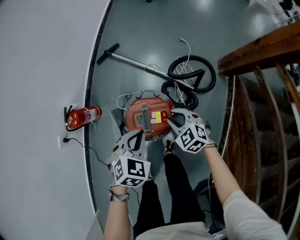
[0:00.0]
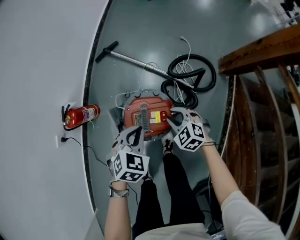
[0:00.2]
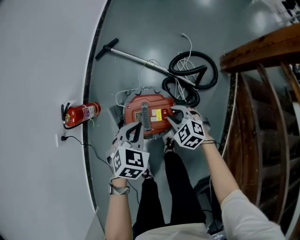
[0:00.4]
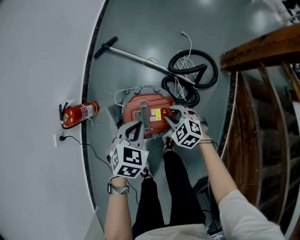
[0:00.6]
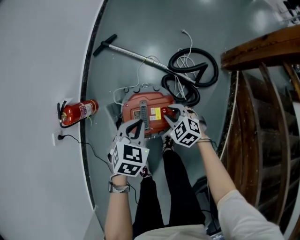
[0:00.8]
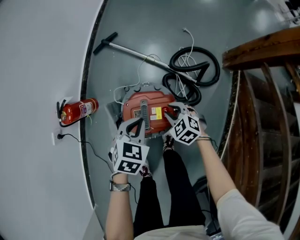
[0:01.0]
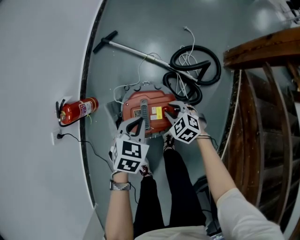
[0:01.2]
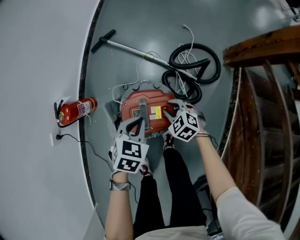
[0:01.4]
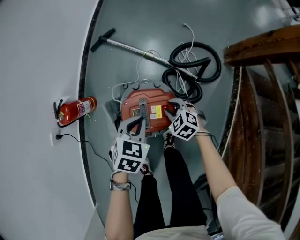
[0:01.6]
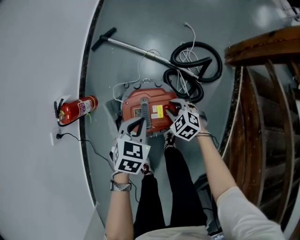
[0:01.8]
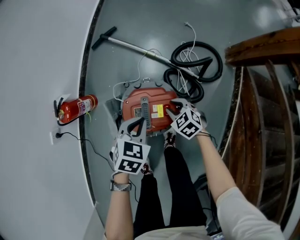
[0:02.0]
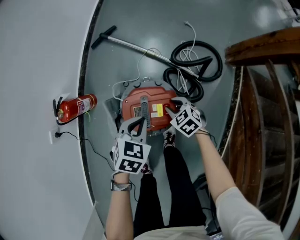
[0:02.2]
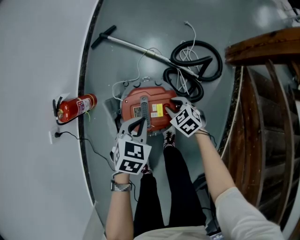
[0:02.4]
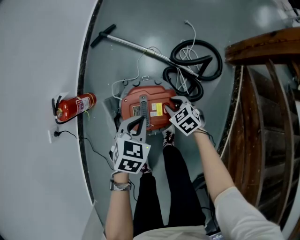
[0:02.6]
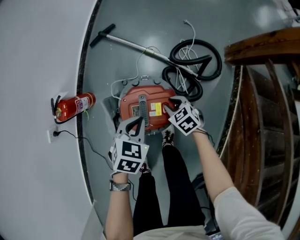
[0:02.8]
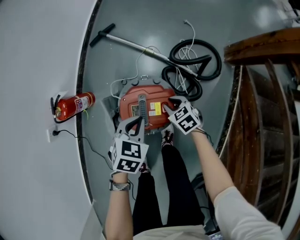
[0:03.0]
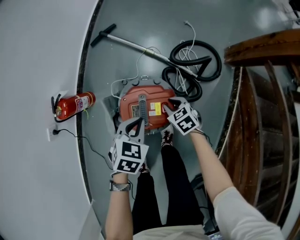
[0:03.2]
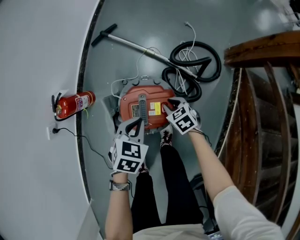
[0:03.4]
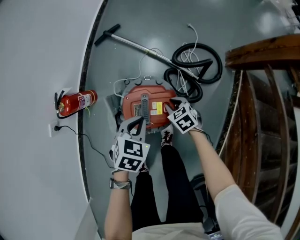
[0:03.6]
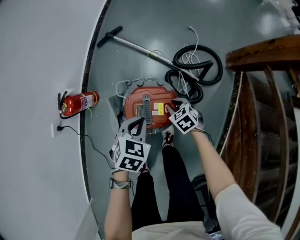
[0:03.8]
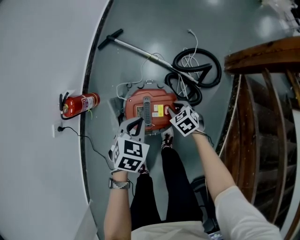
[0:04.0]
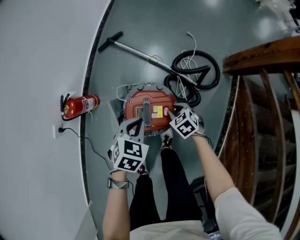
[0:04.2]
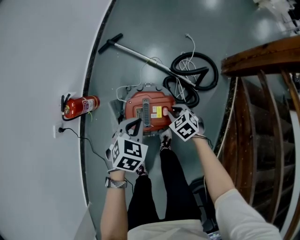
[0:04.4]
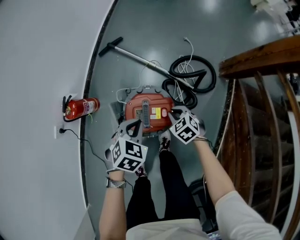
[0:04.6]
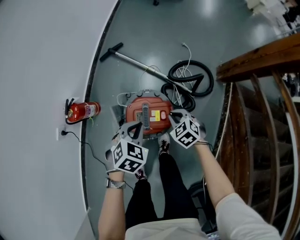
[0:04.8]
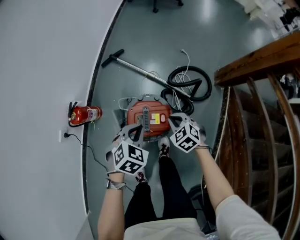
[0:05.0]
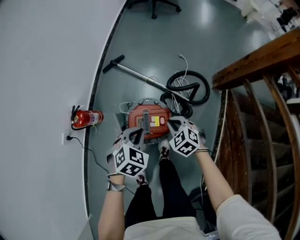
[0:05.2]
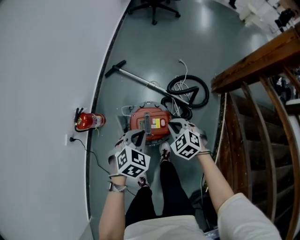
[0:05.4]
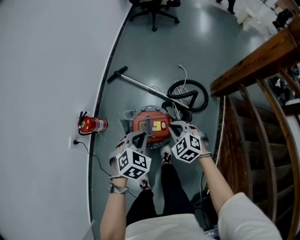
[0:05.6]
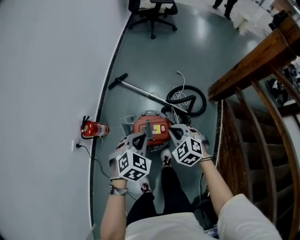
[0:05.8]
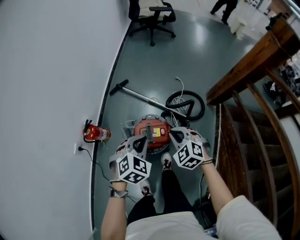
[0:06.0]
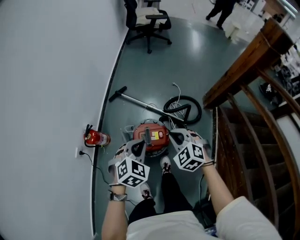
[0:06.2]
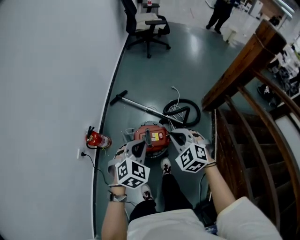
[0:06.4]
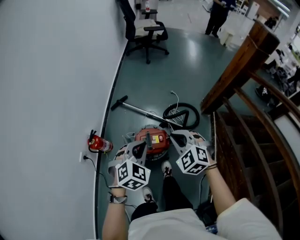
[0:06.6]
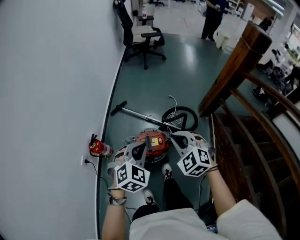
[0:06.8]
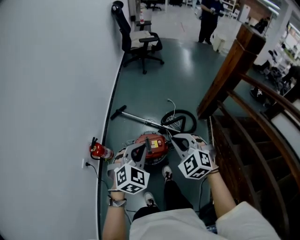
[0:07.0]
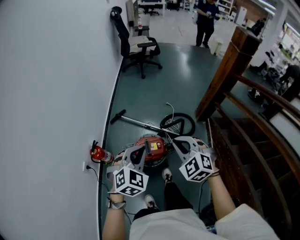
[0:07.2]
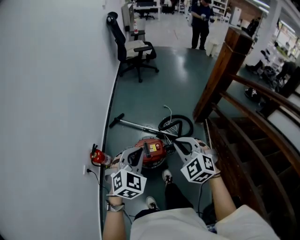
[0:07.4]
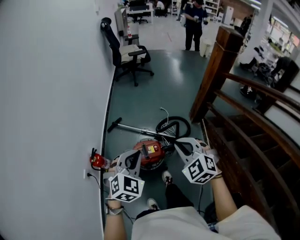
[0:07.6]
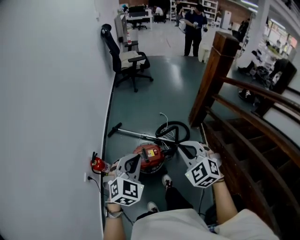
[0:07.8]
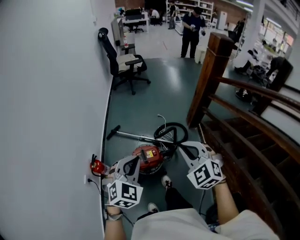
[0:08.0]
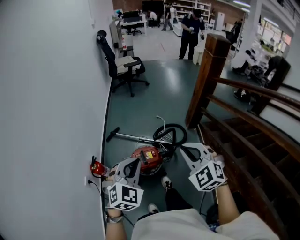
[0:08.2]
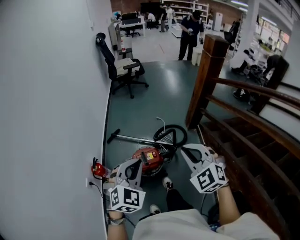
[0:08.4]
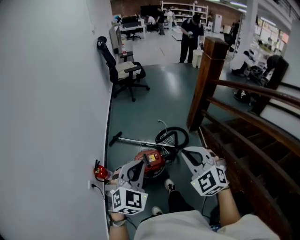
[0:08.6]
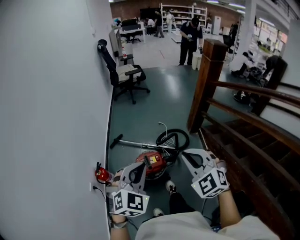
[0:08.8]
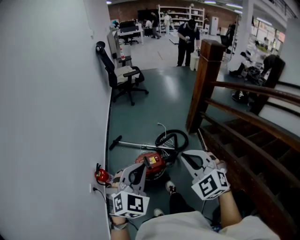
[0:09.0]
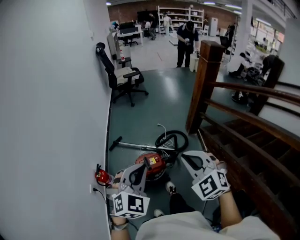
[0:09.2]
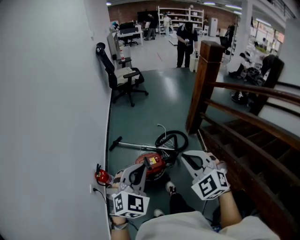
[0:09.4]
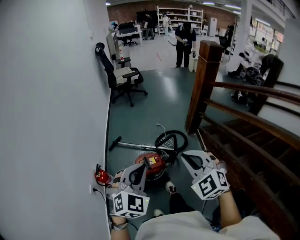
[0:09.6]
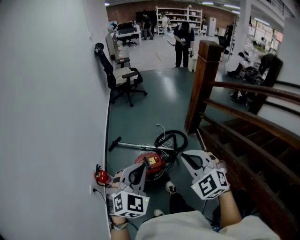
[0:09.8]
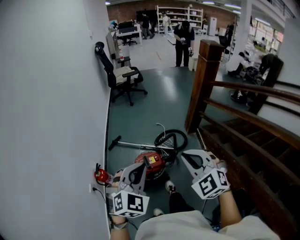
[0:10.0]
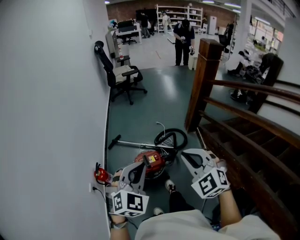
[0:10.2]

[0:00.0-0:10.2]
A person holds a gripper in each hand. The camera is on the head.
0:00.0 to 0:01.4: Both grippers move downward, roughly 10 cm.
0:01.4 to 0:03.0: The right gripper swivels some 20 degrees.
0:03.0 to 0:04.4: The left gripper changes place by some 5 cm. Meanwhile the right gripper is displaced upward by roughly 5 cm.
0:04.4 to 0:05.8: The left gripper travels upward by about 15 cm, while the right gripper goes some 25 cm upward, and rotates about 30 degrees.
0:05.8 to 0:07.2: Both grippers move upward and backward, roughly 25 cm. The left gripper rotates roughly 20 degrees.
0:07.2 to 0:08.8: The right gripper moves backward and upward, some 20 cm. Meanwhile the left gripper is displaced upward and backward by approximately 15 cm.
0:08.8 to 0:10.2: The grippers stay close to where they were, moving slightly.

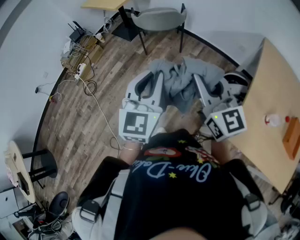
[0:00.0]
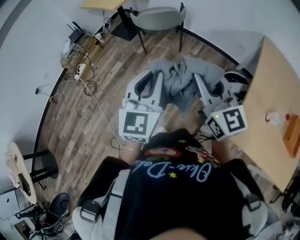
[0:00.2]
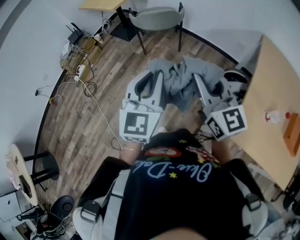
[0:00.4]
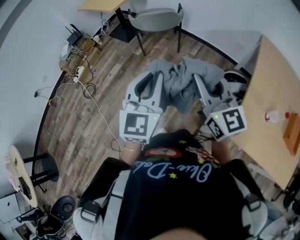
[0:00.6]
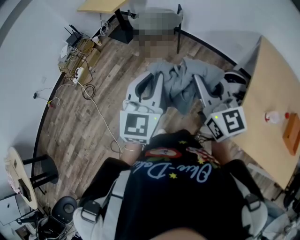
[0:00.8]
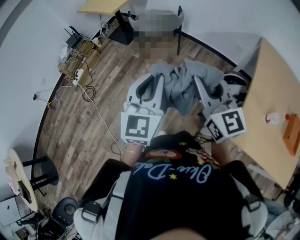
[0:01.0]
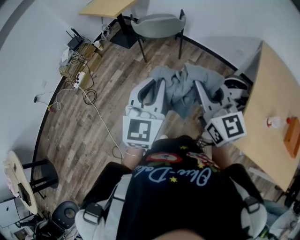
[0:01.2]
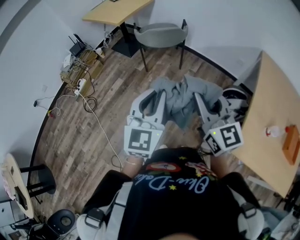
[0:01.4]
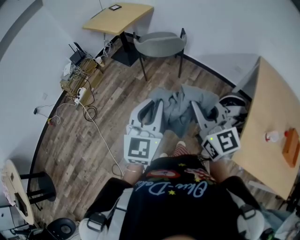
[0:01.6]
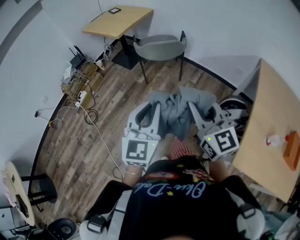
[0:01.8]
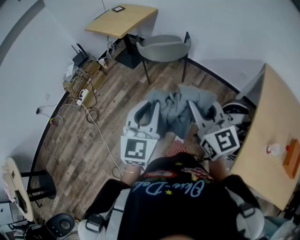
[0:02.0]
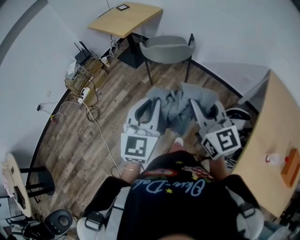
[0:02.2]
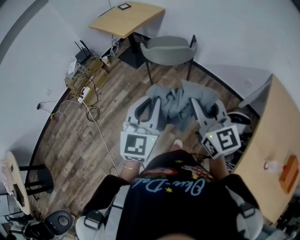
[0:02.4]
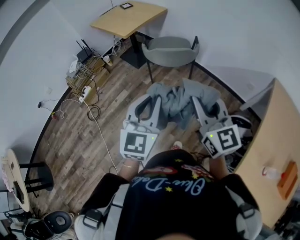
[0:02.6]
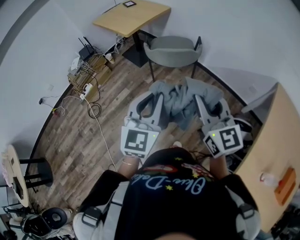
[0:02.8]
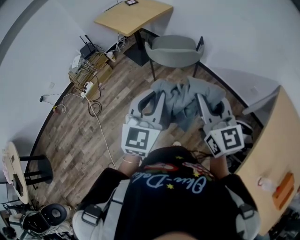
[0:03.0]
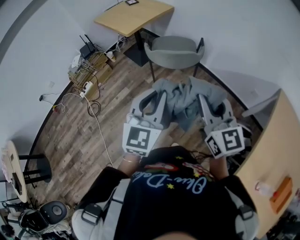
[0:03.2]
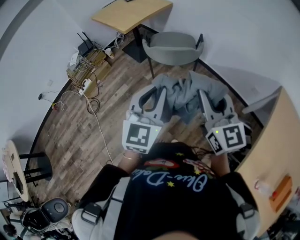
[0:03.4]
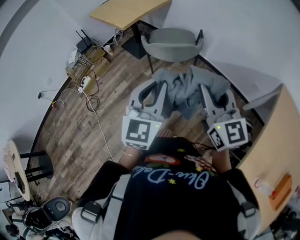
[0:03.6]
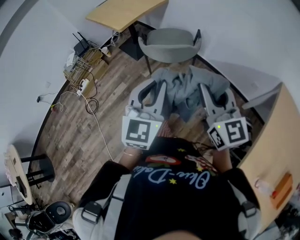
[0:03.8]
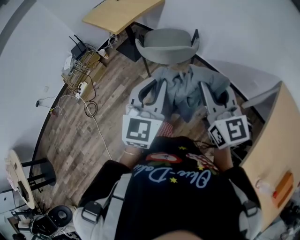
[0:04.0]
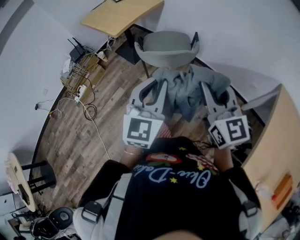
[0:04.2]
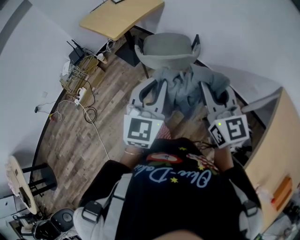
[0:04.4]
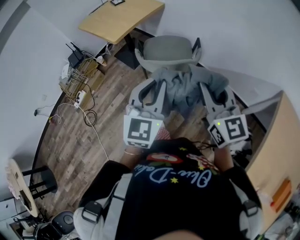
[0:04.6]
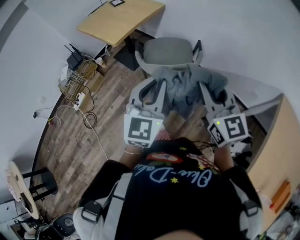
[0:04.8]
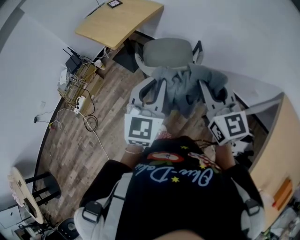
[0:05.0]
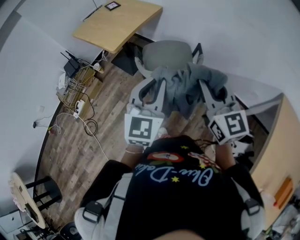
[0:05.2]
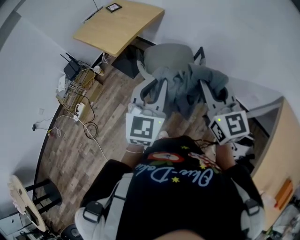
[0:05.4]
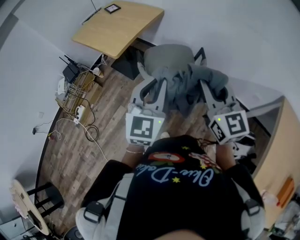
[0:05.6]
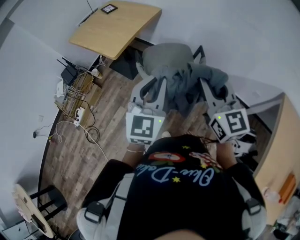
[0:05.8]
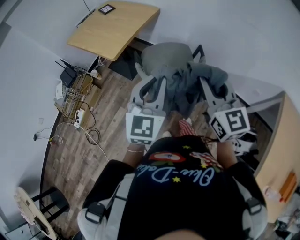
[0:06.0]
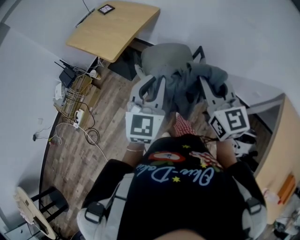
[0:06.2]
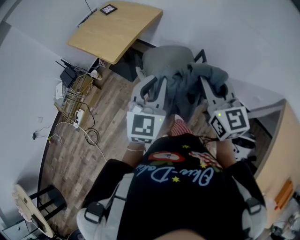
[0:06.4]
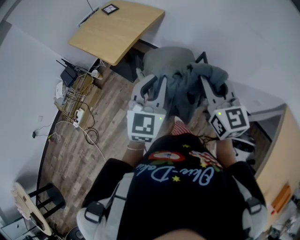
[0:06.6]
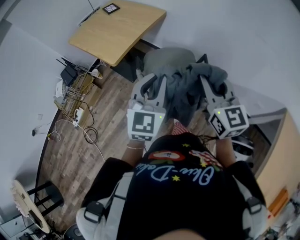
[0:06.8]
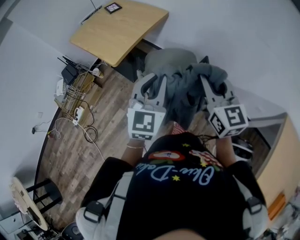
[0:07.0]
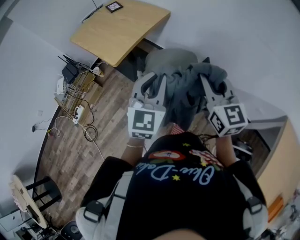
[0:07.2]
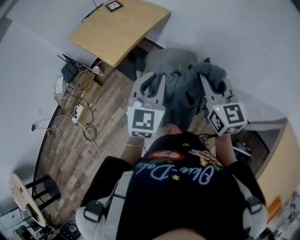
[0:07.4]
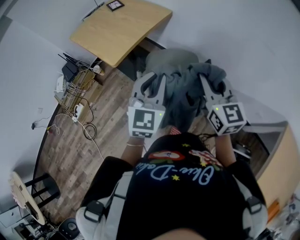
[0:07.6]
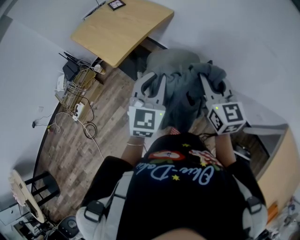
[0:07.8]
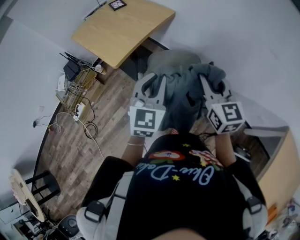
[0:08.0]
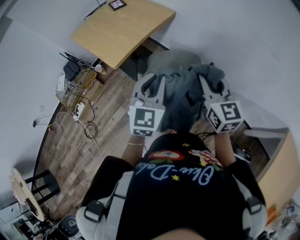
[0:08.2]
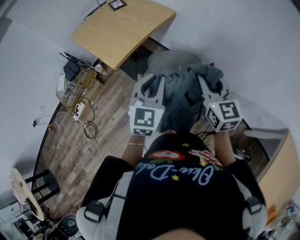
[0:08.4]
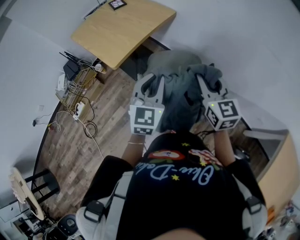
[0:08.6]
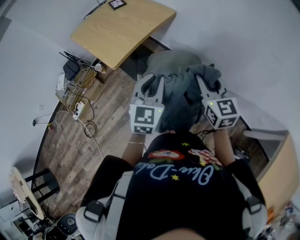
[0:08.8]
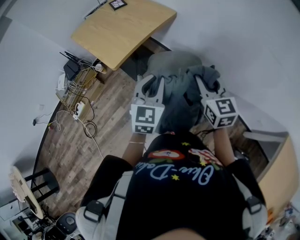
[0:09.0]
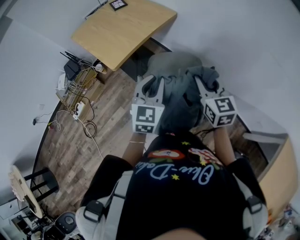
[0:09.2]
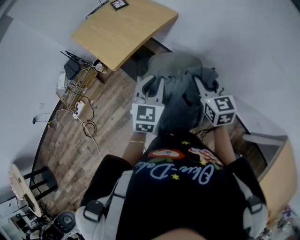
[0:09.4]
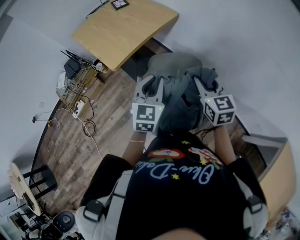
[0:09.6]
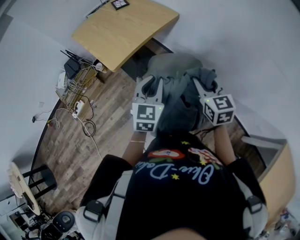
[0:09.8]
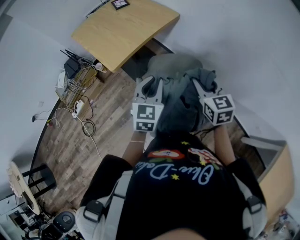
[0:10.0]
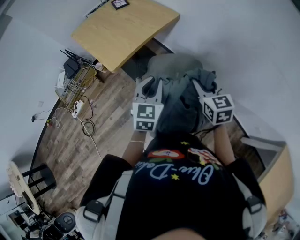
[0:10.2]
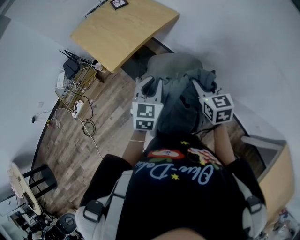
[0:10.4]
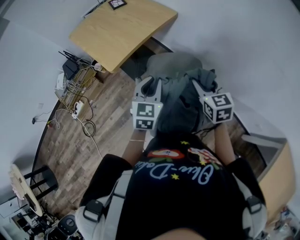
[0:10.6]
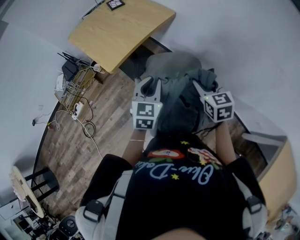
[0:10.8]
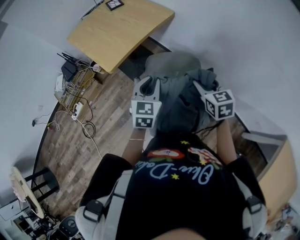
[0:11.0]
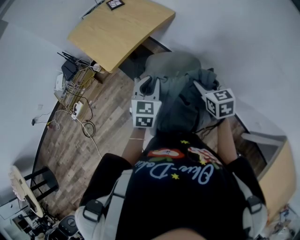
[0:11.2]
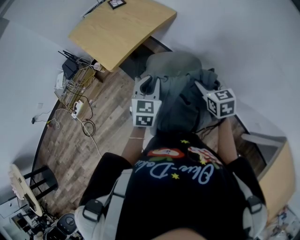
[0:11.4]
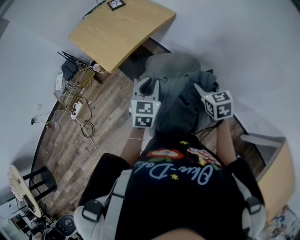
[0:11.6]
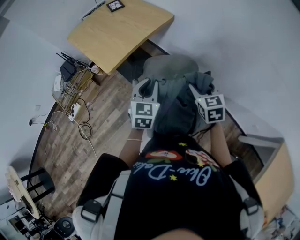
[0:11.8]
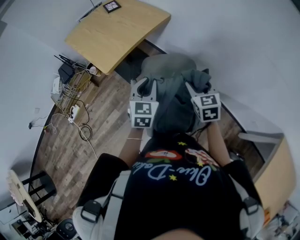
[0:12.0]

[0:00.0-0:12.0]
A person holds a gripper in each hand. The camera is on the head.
0:00.0 to 0:01.6: Both grippers travel together to the left, some 5 cm.
0:01.6 to 0:03.0: The grippers both shift forward by roughly 20 cm.
0:03.0 to 0:04.4: Both grippers travel together forward, roughly 15 cm.
0:04.4 to 0:06.0: Both grippers move forward and to the left, roughly 20 cm.
0:06.0 to 0:07.6: The grippers both shift forward by some 15 cm.
0:07.6 to 0:09.0: Both grippers travel together downward and forward, approximately 10 cm.
0:09.0 to 0:10.4: The right gripper moves some 5 cm, while the left gripper changes place by approximately 5 cm.
0:10.4 to 0:12.0: The right gripper opens.

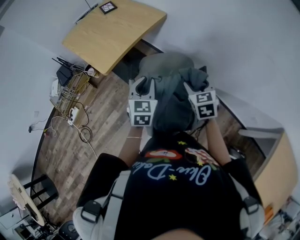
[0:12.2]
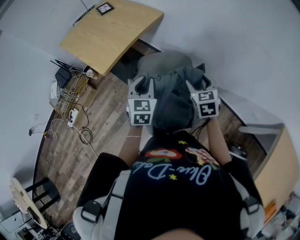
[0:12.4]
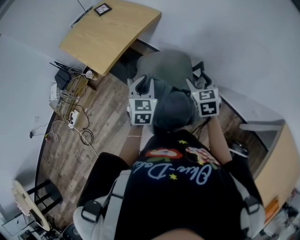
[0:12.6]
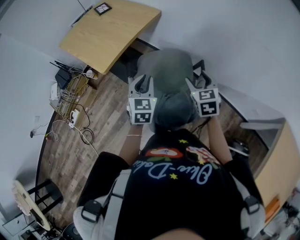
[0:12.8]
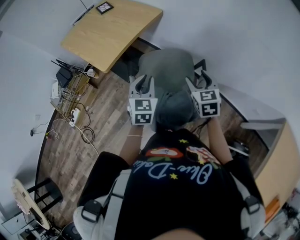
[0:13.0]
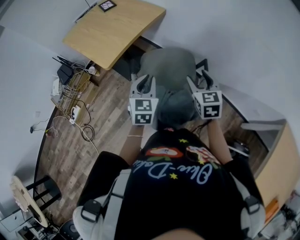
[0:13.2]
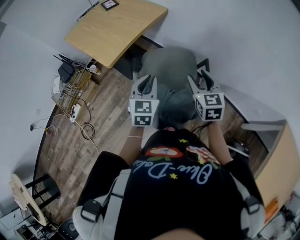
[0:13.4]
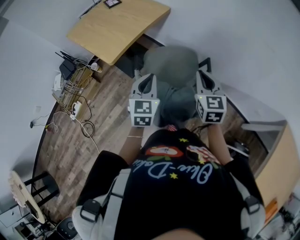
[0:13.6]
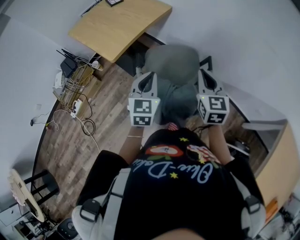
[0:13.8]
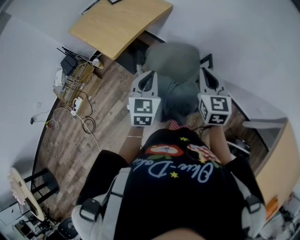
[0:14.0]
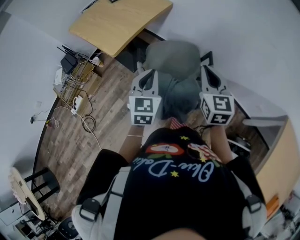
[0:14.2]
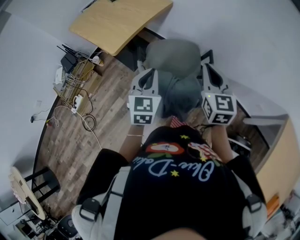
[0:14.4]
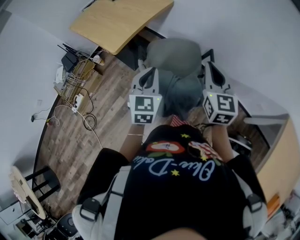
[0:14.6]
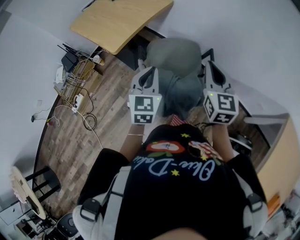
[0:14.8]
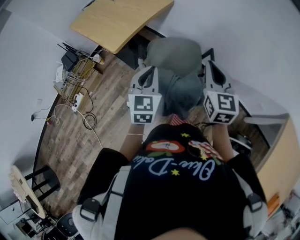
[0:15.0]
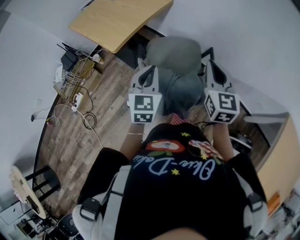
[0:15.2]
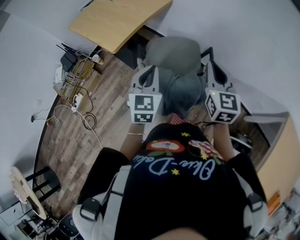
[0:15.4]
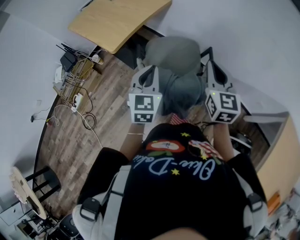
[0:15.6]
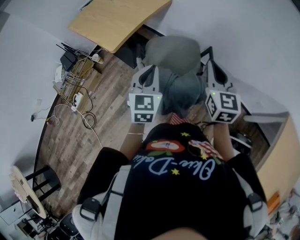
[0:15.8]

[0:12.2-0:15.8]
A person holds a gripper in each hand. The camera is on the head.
0:12.2 to 0:14.0: The left gripper goes approximately 10 cm backward; the right gripper heads upward and backward, covering some 10 cm, turns by roughly 20 degrees, and closes.
0:14.0 to 0:15.8: The grippers make only small movements.
